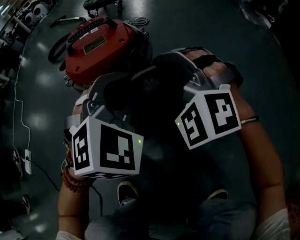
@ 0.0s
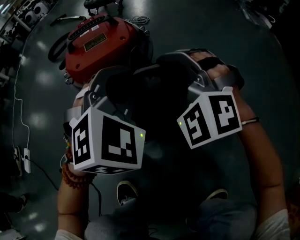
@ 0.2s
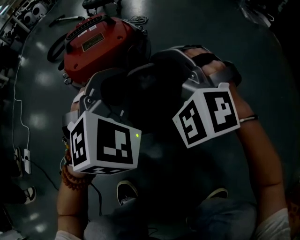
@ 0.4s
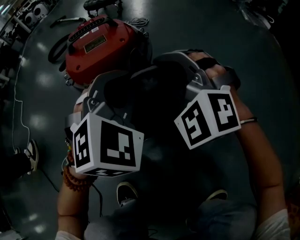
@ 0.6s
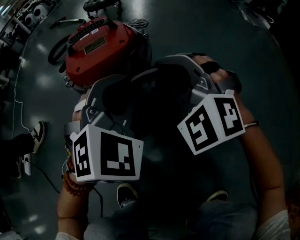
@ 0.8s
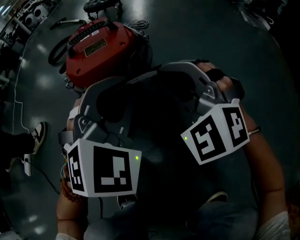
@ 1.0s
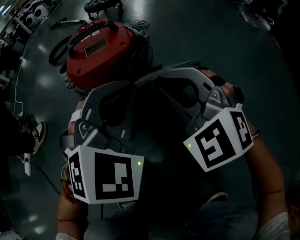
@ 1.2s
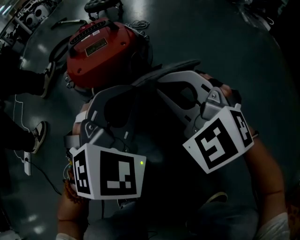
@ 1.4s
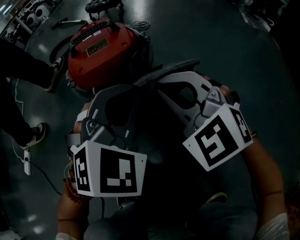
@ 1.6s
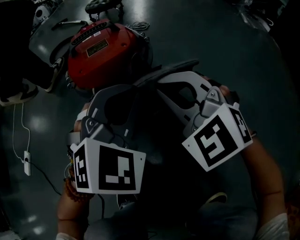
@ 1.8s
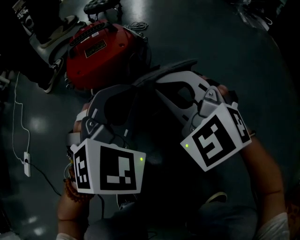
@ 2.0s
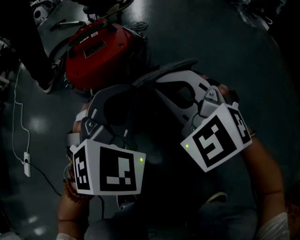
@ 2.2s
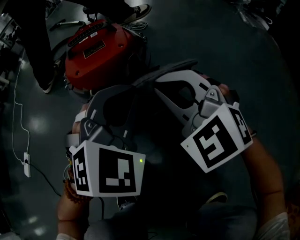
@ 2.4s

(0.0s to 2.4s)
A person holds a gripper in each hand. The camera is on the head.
0.0s - 1.2s: There are only small adjustments of the grippers.
1.2s - 2.4s: There are only small adjustments of the grippers.

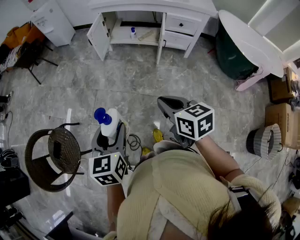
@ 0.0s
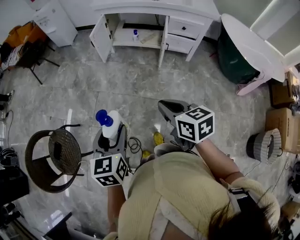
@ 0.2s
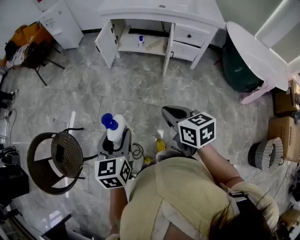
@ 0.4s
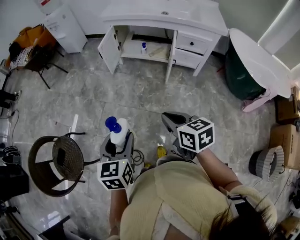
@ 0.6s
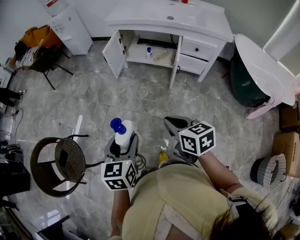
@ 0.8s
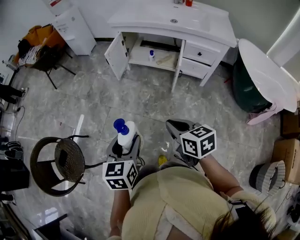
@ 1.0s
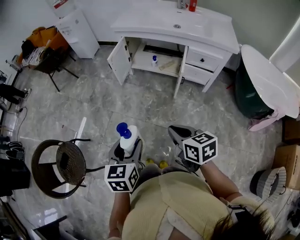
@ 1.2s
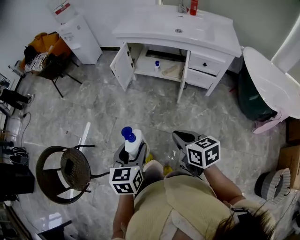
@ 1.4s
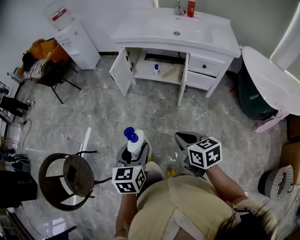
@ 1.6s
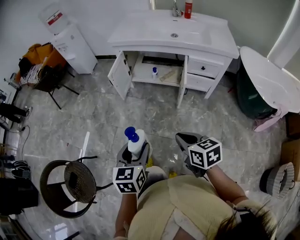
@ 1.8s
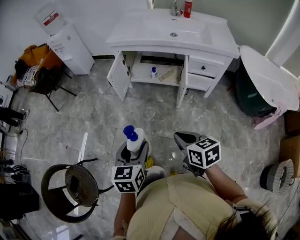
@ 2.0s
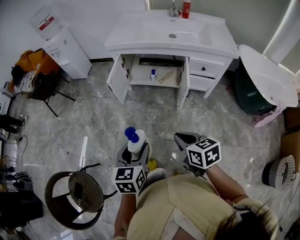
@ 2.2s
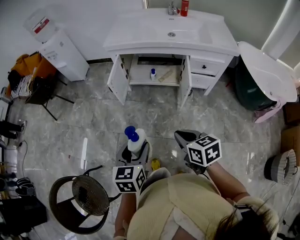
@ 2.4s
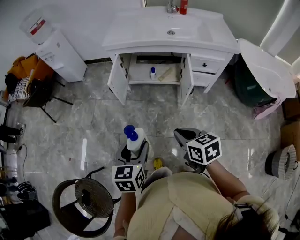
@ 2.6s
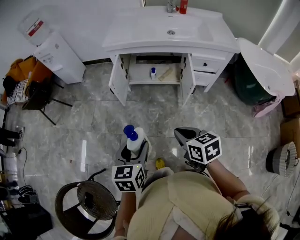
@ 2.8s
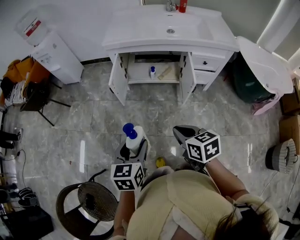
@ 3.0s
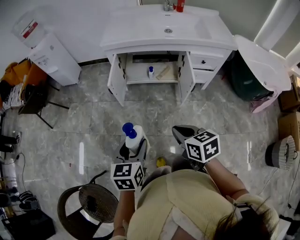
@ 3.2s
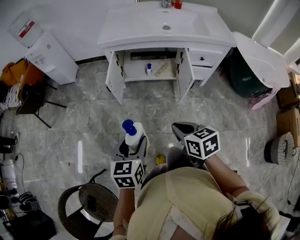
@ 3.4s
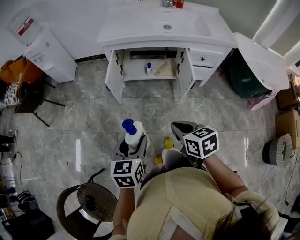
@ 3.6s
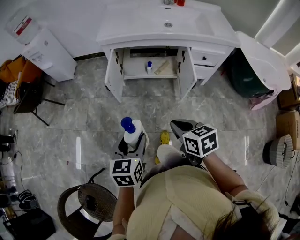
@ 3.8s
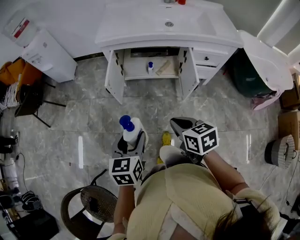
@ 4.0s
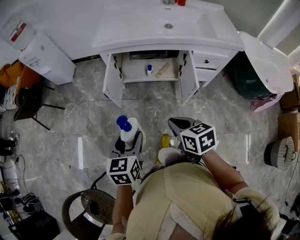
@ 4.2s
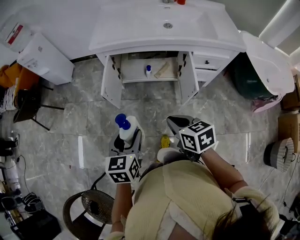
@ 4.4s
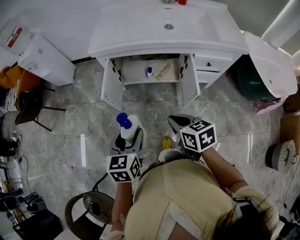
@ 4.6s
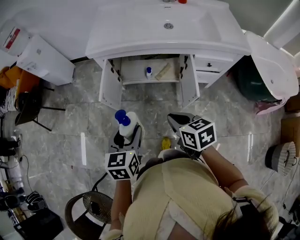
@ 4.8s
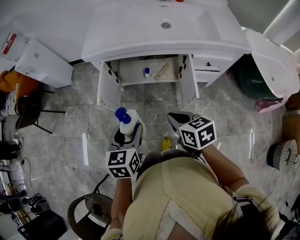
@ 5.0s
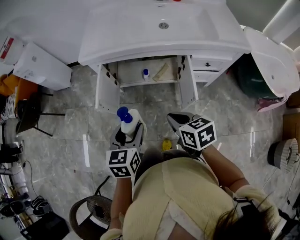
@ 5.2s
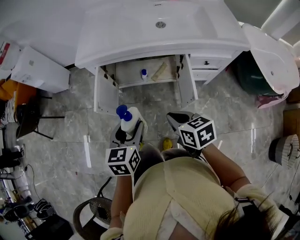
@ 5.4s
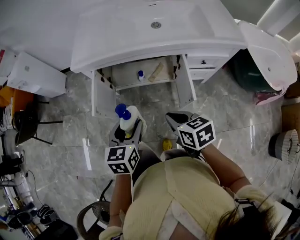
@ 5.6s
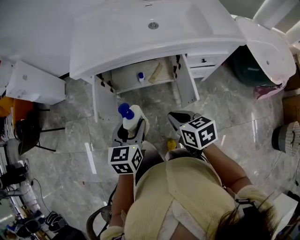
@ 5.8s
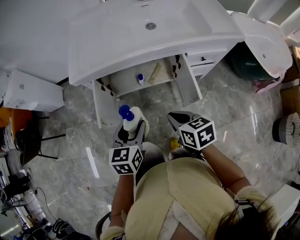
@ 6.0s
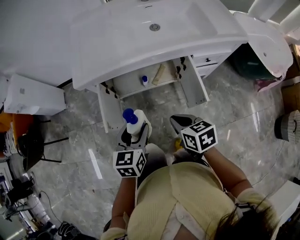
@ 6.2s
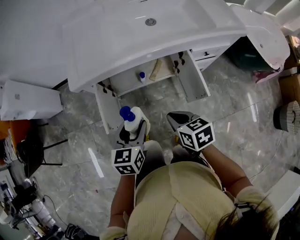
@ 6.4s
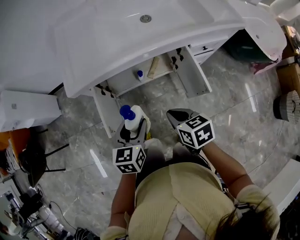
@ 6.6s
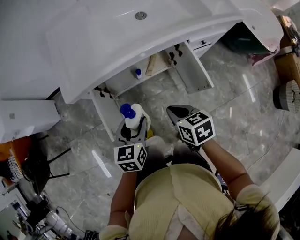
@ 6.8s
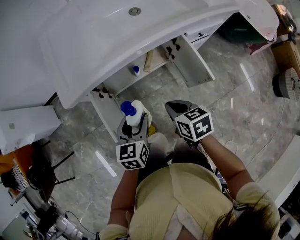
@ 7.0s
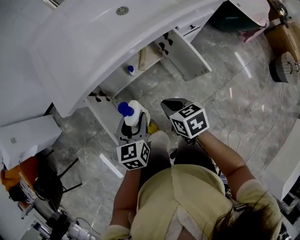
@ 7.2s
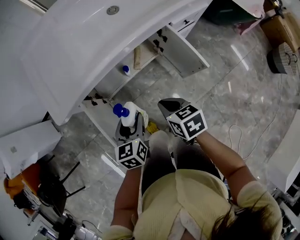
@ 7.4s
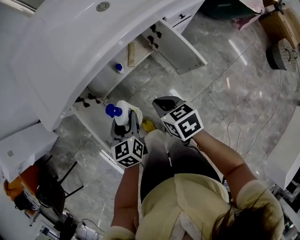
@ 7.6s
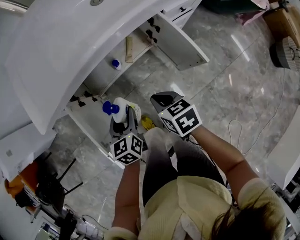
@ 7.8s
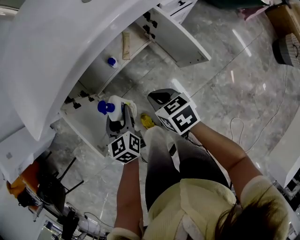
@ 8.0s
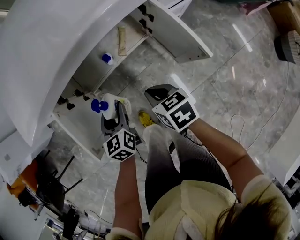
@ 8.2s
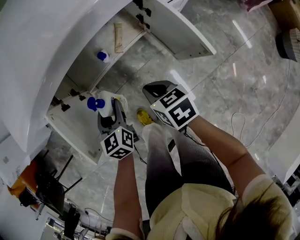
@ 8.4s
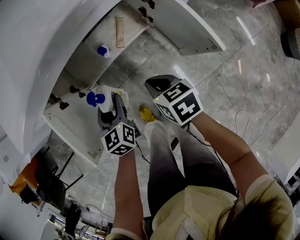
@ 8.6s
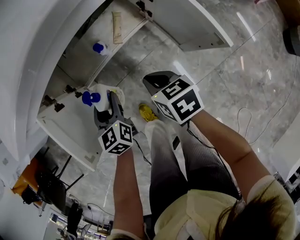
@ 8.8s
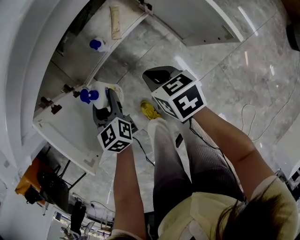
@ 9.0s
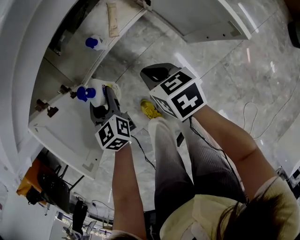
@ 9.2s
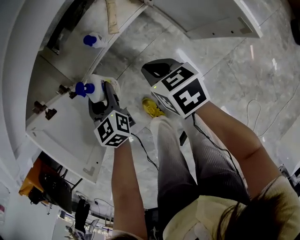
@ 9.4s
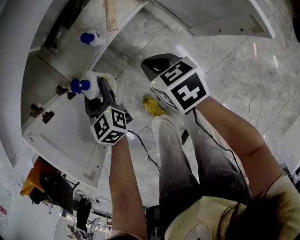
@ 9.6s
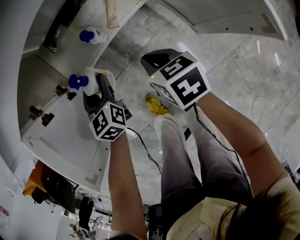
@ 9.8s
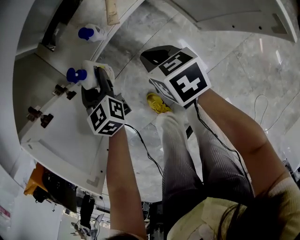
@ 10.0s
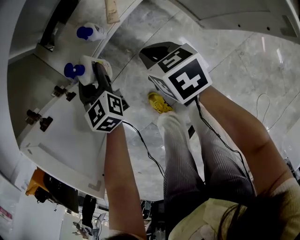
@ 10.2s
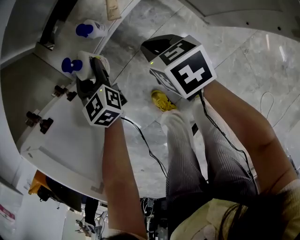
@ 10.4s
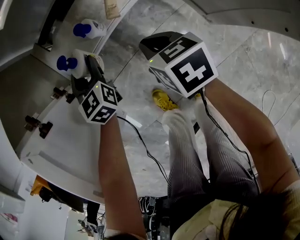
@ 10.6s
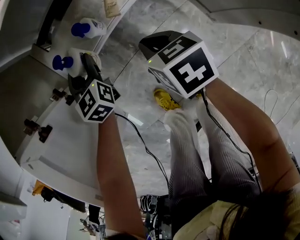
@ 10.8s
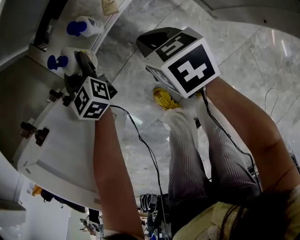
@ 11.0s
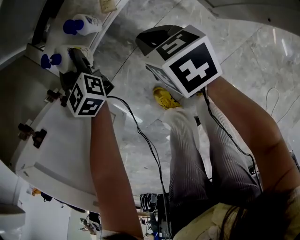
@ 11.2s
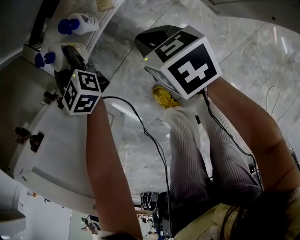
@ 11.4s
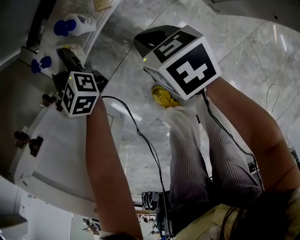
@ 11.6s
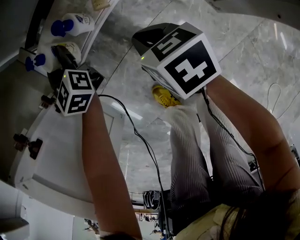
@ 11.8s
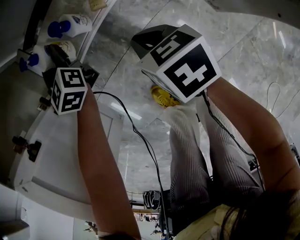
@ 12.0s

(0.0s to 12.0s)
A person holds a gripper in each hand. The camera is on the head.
0.0s - 1.6s: Both grippers travel together forward and to the right, some 15 cm.
1.6s - 3.0s: The grippers both shift forward and to the left by roughly 20 cm.
3.0s - 4.4s: Both grippers travel together forward, roughly 15 cm.
4.4s - 6.0s: Both grippers travel together forward, roughly 15 cm.
6.0s - 7.6s: The two grippers go some 15 cm downward, forward and to the left. The right gripper turns by approximately 20 degrees.
7.6s - 9.0s: The two grippers go about 20 cm downward.
9.0s - 10.4s: The grippers both shift downward and forward by about 15 cm.
10.4s - 12.0s: The right gripper goes approximately 5 cm downward, while the left gripper moves forward, some 10 cm.

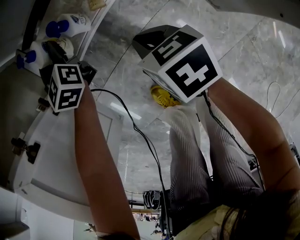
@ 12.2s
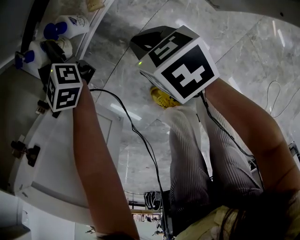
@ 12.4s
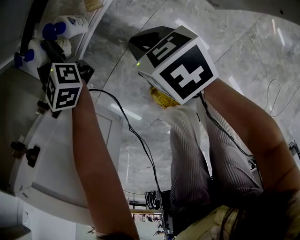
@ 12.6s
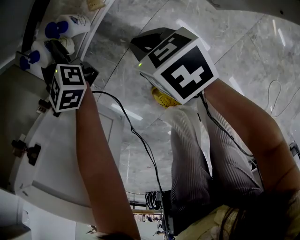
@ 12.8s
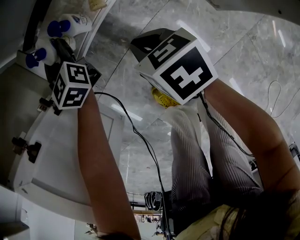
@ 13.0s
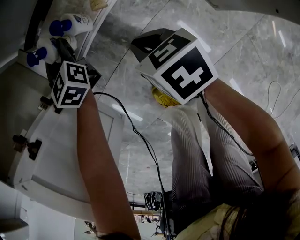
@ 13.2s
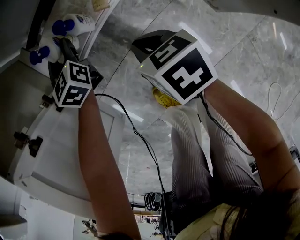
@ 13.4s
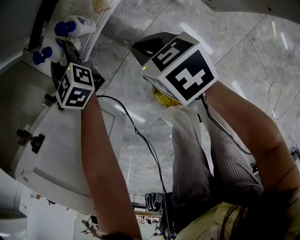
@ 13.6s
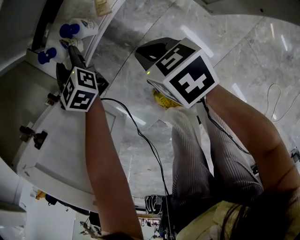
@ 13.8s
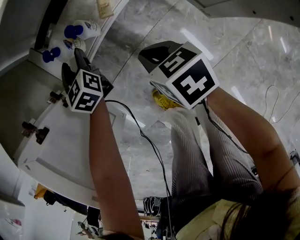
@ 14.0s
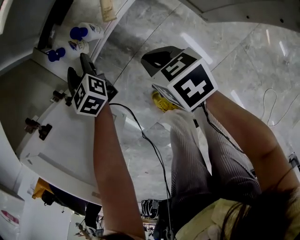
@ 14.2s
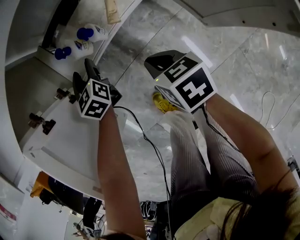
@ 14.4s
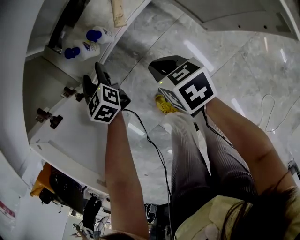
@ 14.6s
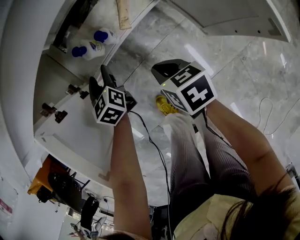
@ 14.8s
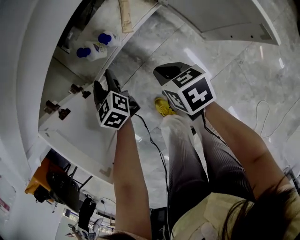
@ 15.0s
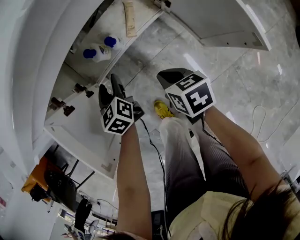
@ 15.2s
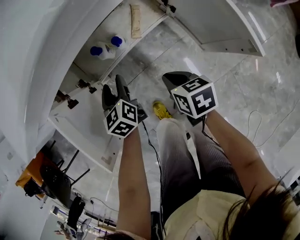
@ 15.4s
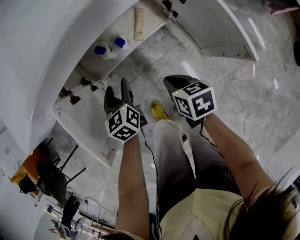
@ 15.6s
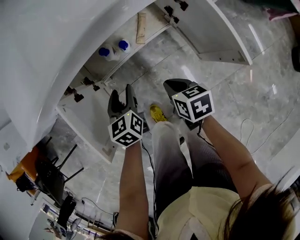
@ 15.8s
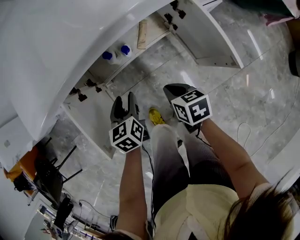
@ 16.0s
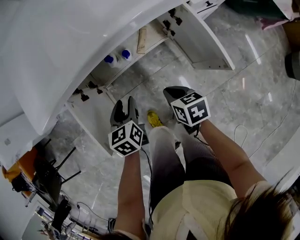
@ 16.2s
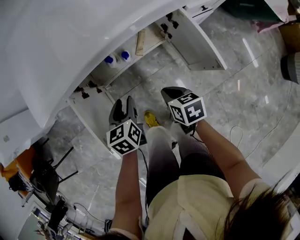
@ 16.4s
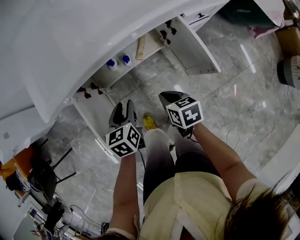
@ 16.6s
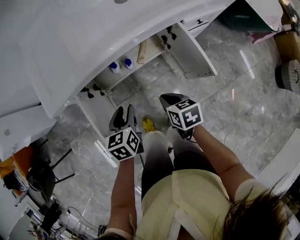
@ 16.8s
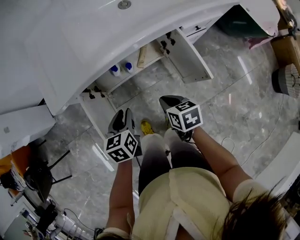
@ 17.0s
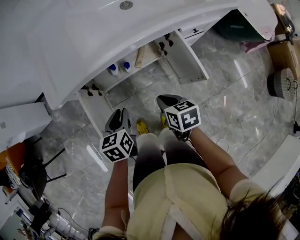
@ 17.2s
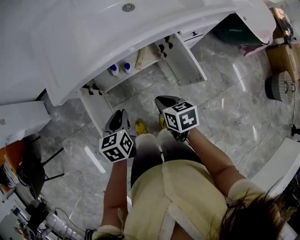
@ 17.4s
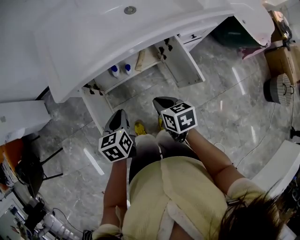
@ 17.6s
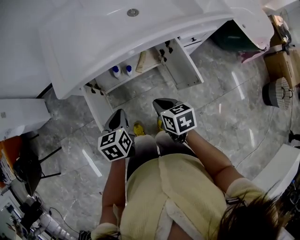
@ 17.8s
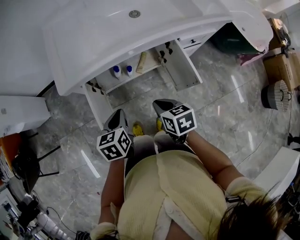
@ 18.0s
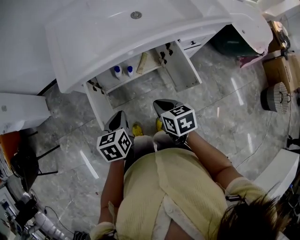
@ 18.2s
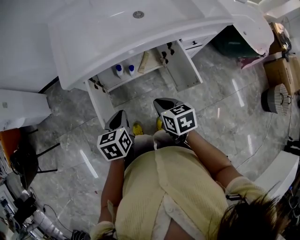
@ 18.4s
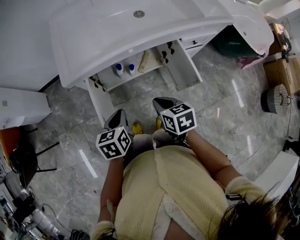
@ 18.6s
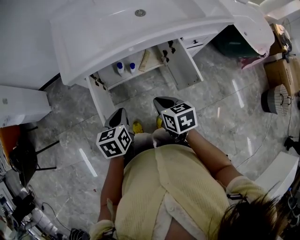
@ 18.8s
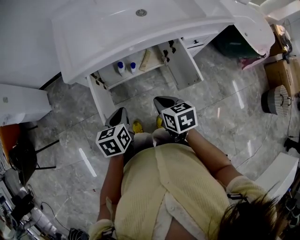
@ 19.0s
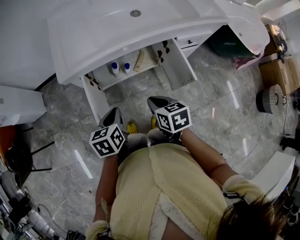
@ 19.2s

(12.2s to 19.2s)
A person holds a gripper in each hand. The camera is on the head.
12.2s - 13.6s: The grippers move only a little.
13.6s - 15.0s: The left gripper goes roughly 15 cm backward and upward; the right gripper is displaced upward by roughly 10 cm.
15.0s - 16.4s: The right gripper is displaced upward by roughly 15 cm, while the left gripper shifts some 25 cm upward and backward.
16.4s - 17.8s: The right gripper goes roughly 15 cm upward. Meanwhile the left gripper is displaced upward and backward by some 15 cm, and closes.
17.8s - 19.2s: The grippers stay close to where they were, moving slightly.

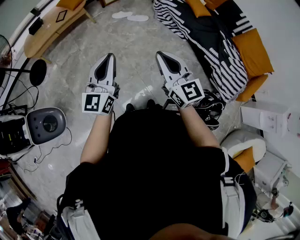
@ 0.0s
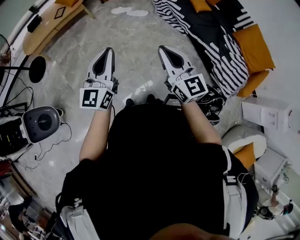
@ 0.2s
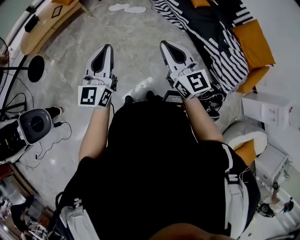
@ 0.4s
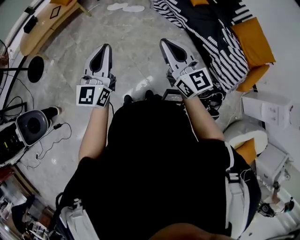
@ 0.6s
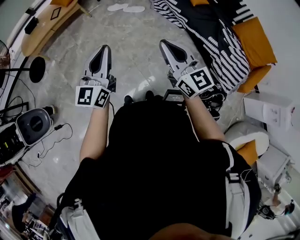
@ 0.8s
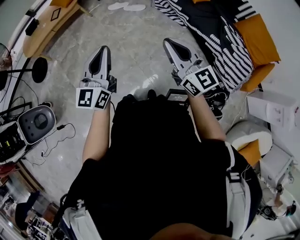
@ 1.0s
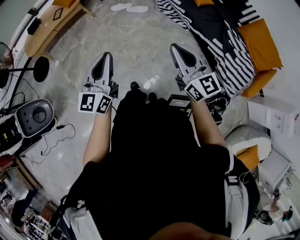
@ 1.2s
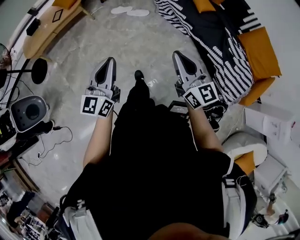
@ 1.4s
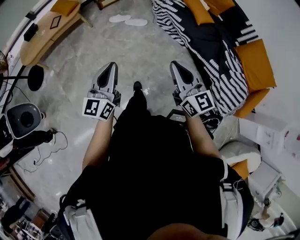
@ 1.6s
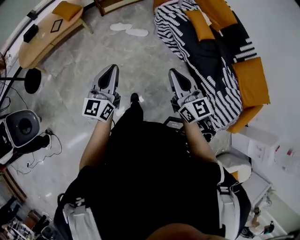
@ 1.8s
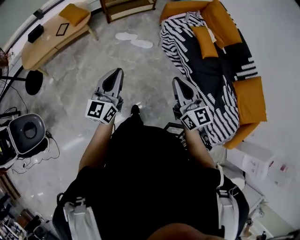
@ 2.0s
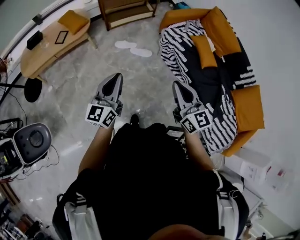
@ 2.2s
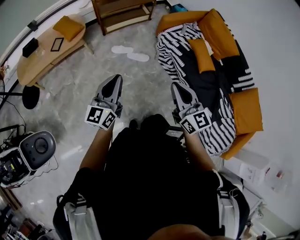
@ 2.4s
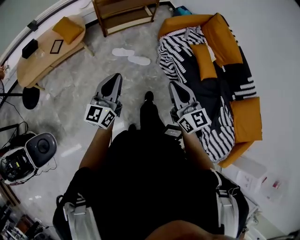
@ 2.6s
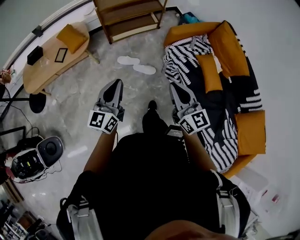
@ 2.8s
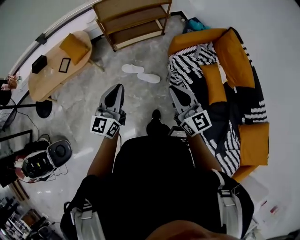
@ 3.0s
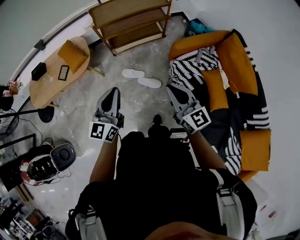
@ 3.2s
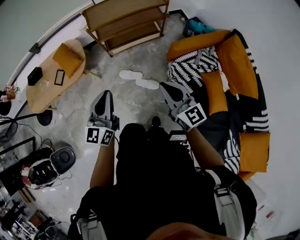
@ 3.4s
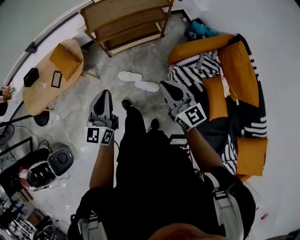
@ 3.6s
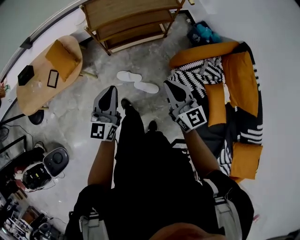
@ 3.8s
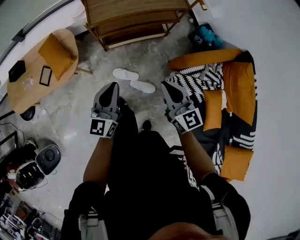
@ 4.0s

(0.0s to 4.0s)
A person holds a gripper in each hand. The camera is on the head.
0.0s - 1.4s: The left gripper heads to the right, covering about 5 cm, while the right gripper travels to the right and forward by about 15 cm.
1.4s - 2.6s: The two grippers go some 40 cm forward.
2.6s - 4.0s: Both grippers are carried forward, approximately 50 cm.
